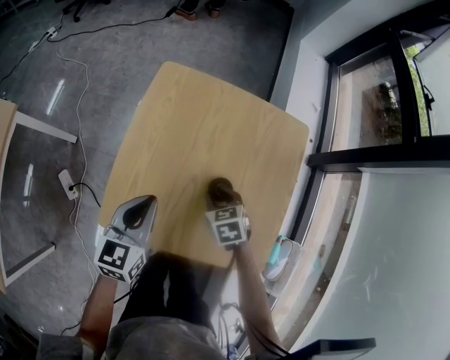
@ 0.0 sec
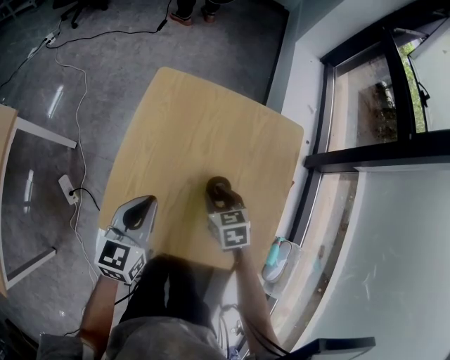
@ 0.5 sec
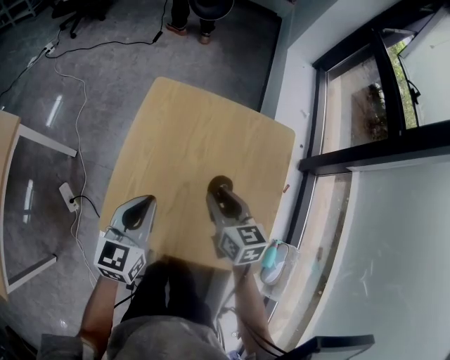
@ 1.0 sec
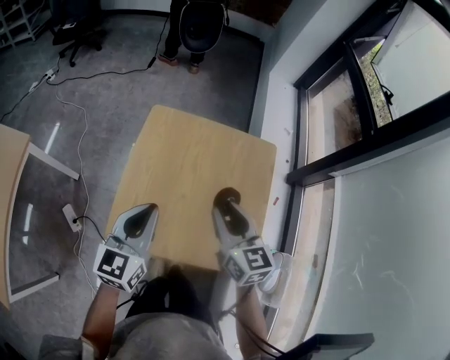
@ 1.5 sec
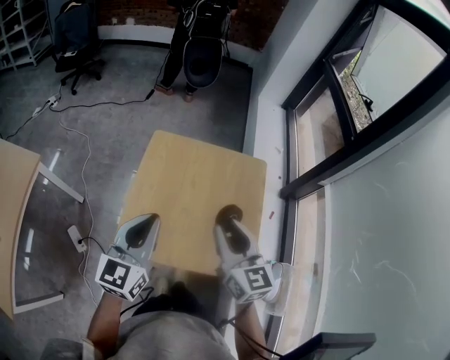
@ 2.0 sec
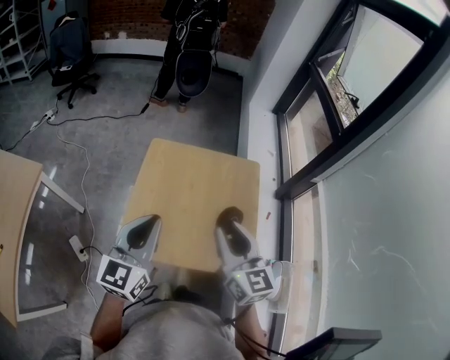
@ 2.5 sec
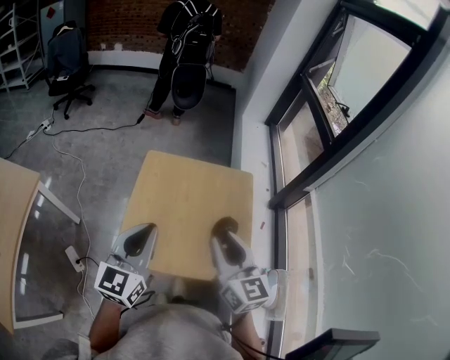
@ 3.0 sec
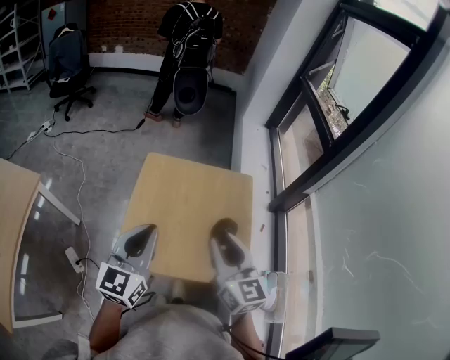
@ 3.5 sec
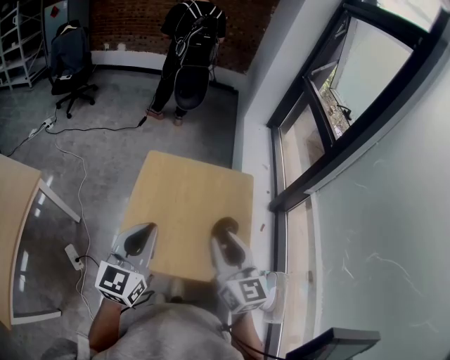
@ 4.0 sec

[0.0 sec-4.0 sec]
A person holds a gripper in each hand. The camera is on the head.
0.0 sec to 2.0 sec: The right gripper travels upward by about 35 cm, and tips its fingers upward by some 50 degrees, while the left gripper heads upward, covering about 25 cm, and turns by some 20 degrees.
2.0 sec to 4.0 sec: The right gripper moves some 5 cm.

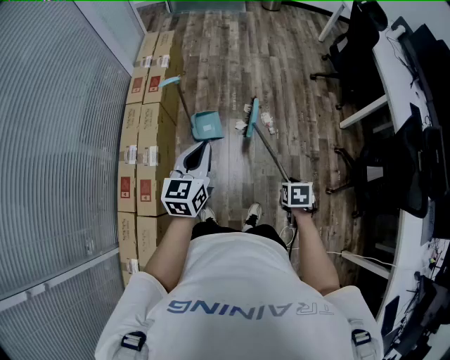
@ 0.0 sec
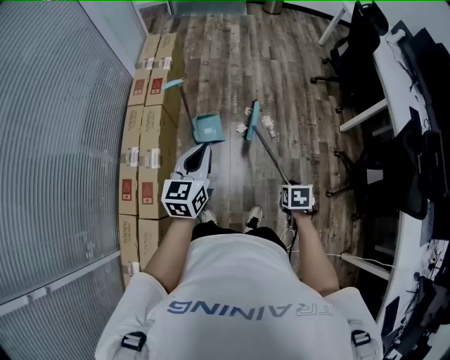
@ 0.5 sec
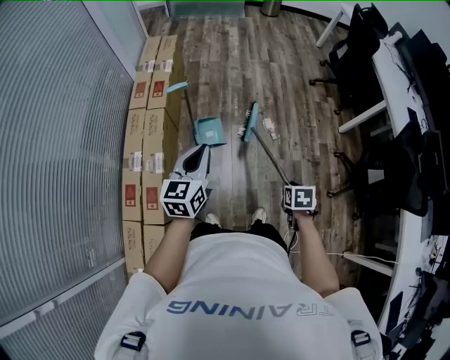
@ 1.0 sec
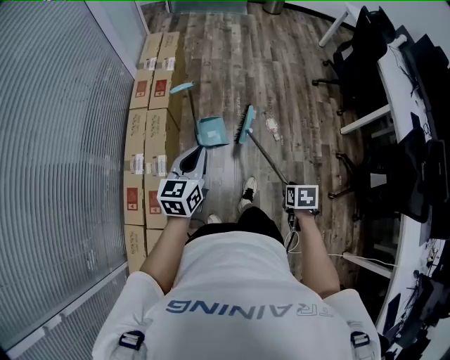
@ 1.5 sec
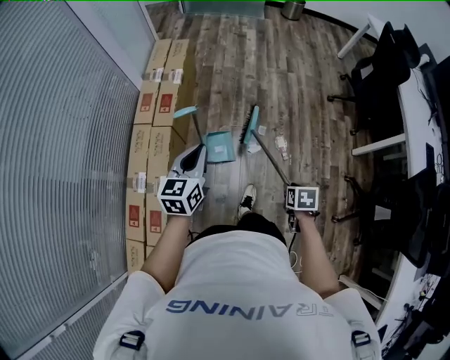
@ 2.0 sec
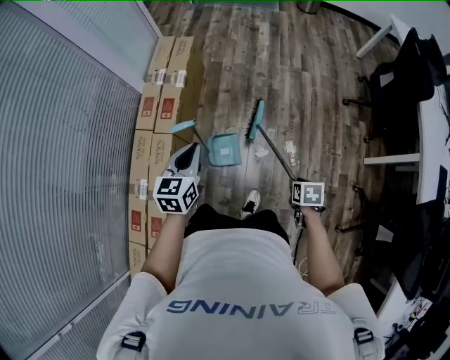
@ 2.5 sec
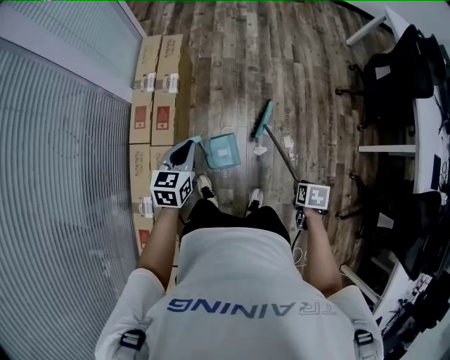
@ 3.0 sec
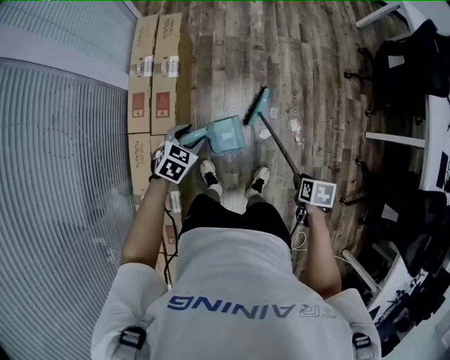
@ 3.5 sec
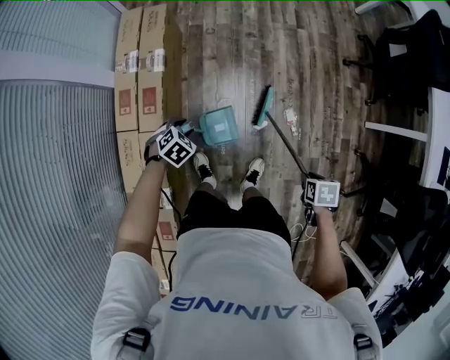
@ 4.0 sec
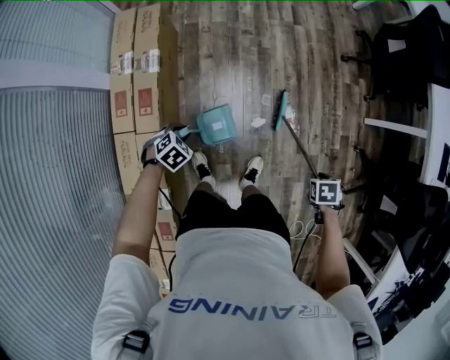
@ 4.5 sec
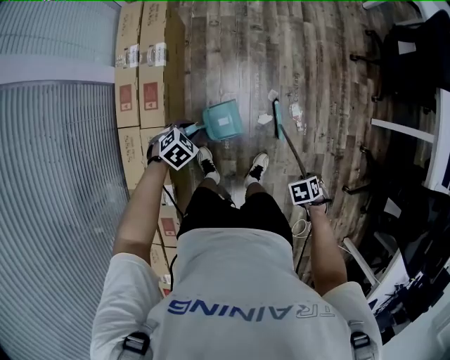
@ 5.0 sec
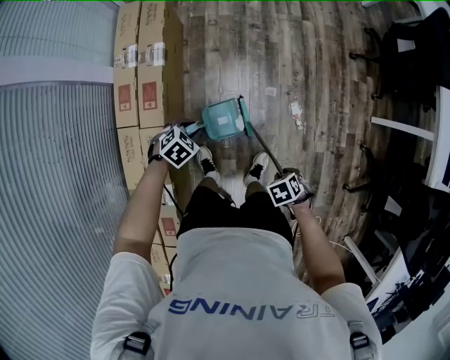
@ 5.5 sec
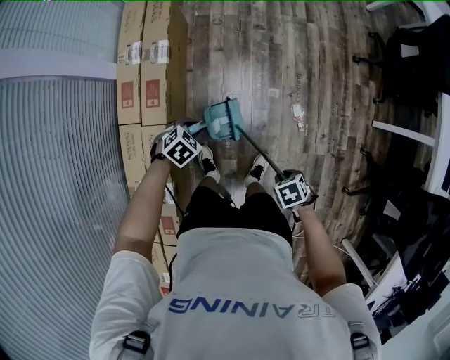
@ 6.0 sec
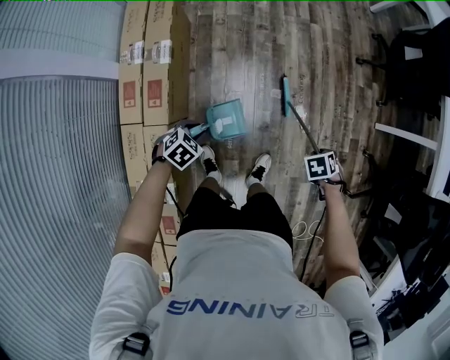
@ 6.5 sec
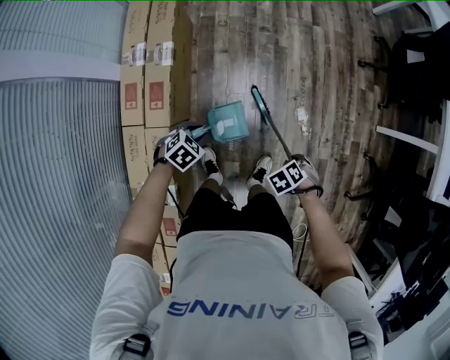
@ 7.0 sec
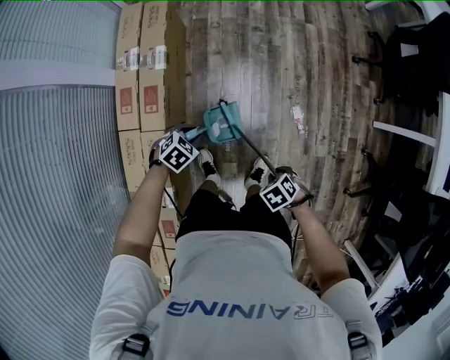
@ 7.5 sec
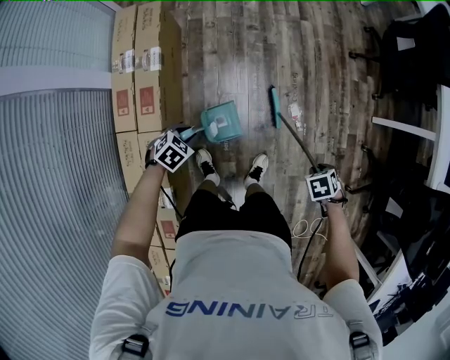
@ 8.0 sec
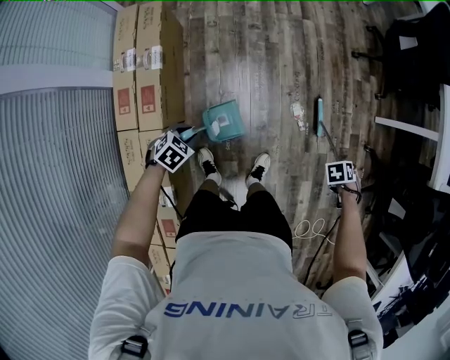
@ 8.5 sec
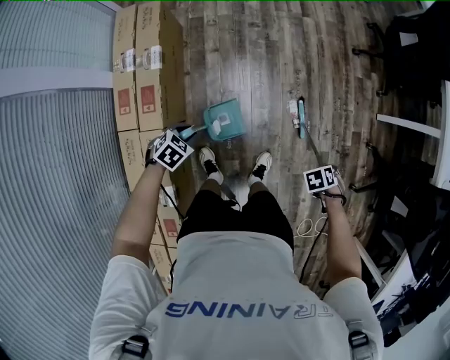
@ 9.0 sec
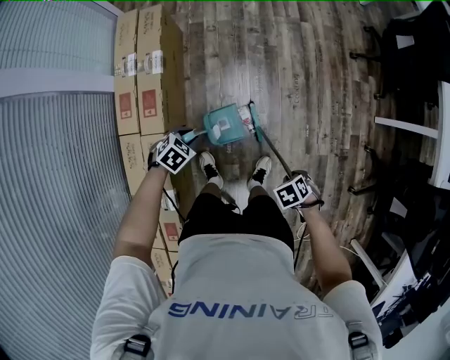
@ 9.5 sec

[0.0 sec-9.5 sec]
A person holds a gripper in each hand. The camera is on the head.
0.0 sec to 2.0 sec: The left gripper shifts by roughly 20 cm.
2.0 sec to 4.0 sec: The left gripper goes some 30 cm downward, points its fingers roughly 50 degrees further downward, and opens.

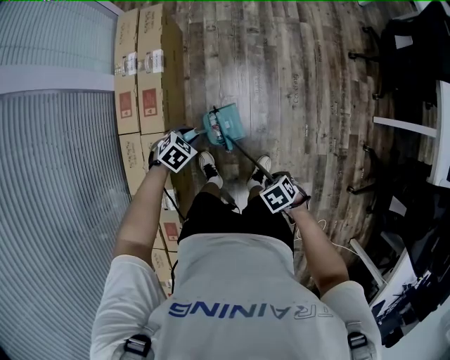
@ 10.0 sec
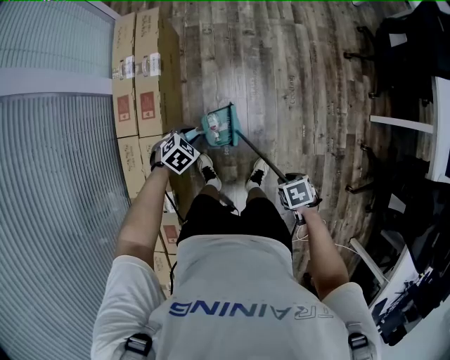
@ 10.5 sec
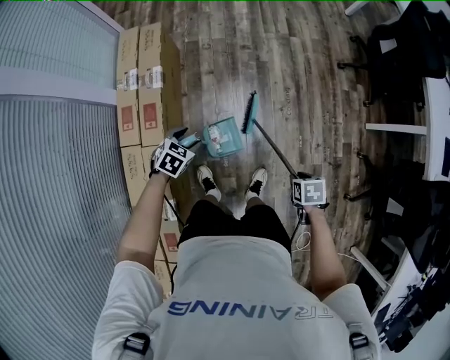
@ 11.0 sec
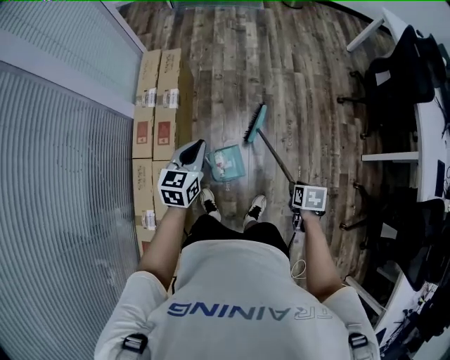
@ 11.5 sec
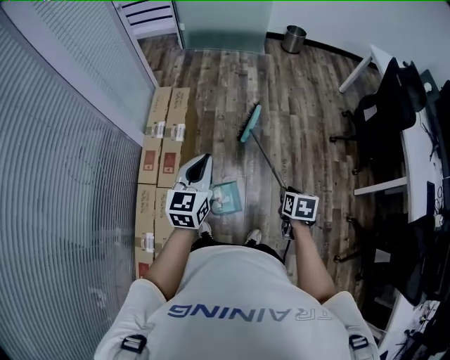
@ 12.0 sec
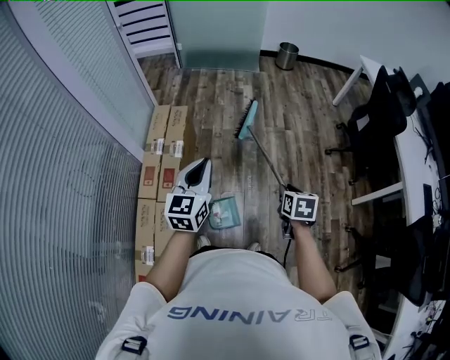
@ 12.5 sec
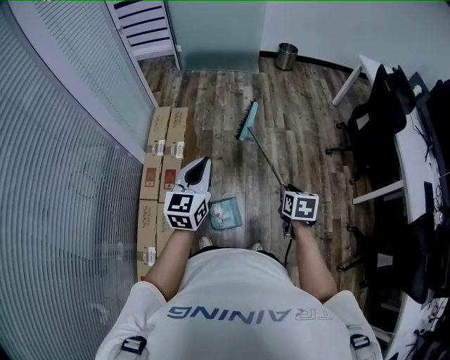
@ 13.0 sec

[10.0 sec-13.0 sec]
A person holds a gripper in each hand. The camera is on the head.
10.0 sec to 11.5 sec: The left gripper goes approximately 25 cm upward, tips its fingers upward by about 40 degrees, and closes its fingers.
11.5 sec to 13.0 sec: The left gripper moves upward, about 15 cm.

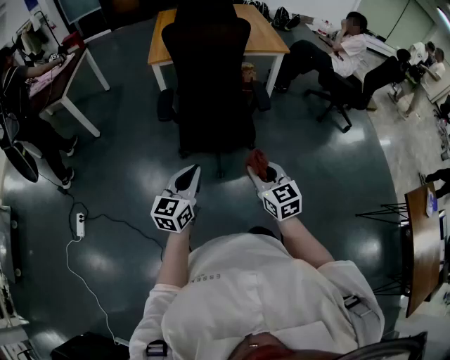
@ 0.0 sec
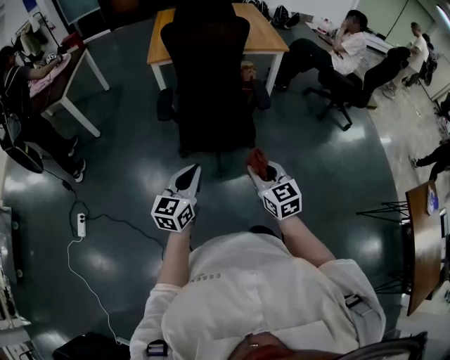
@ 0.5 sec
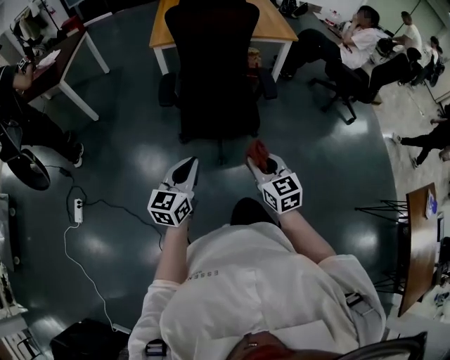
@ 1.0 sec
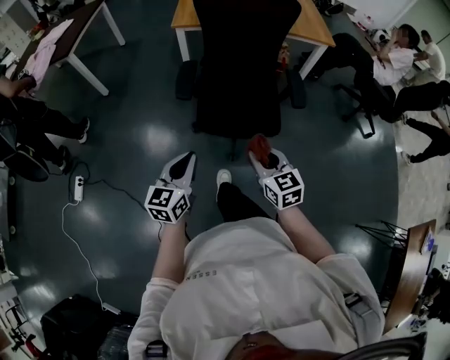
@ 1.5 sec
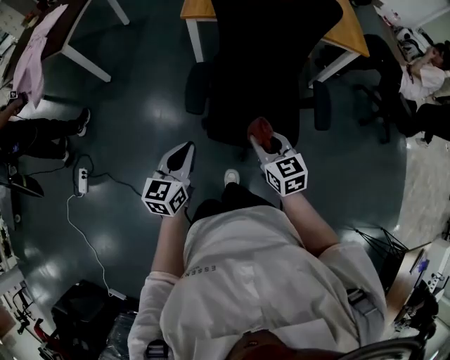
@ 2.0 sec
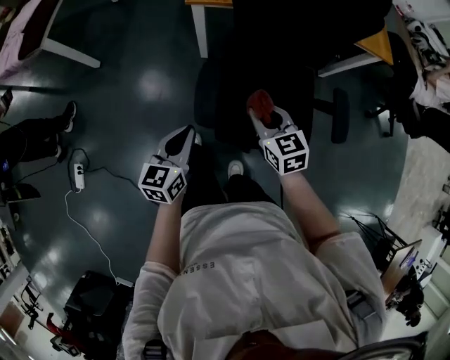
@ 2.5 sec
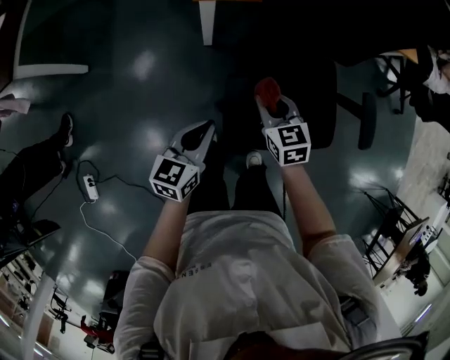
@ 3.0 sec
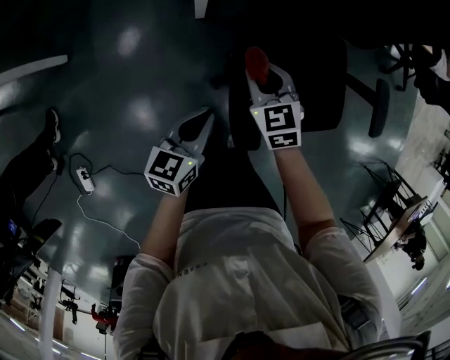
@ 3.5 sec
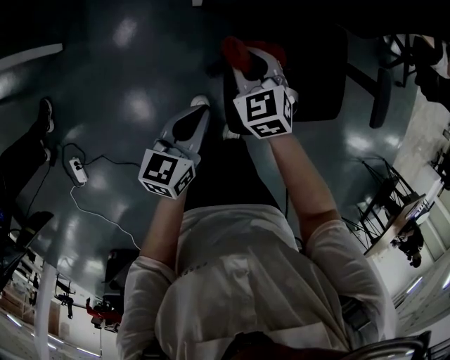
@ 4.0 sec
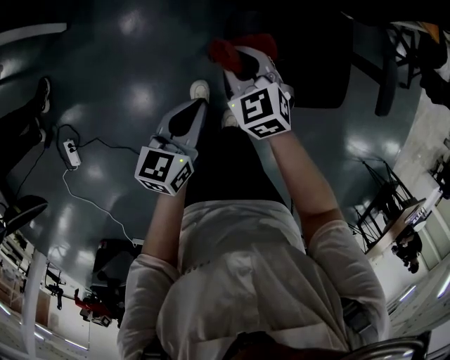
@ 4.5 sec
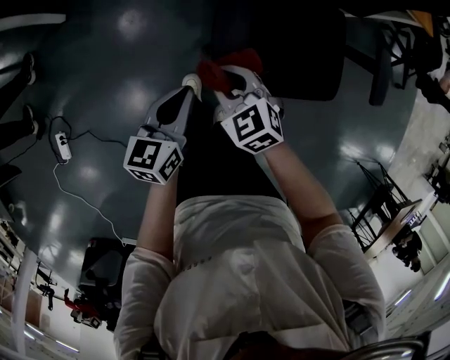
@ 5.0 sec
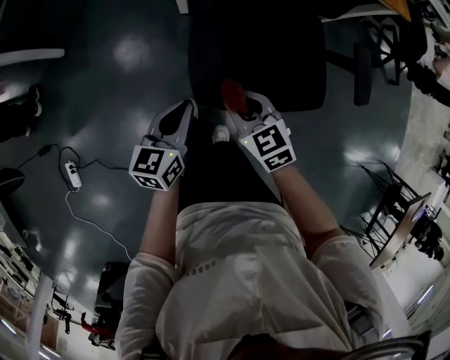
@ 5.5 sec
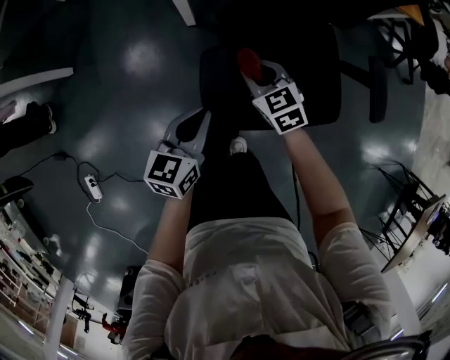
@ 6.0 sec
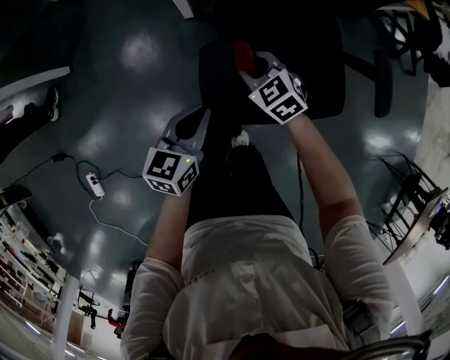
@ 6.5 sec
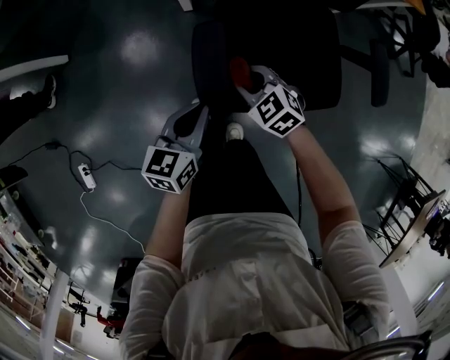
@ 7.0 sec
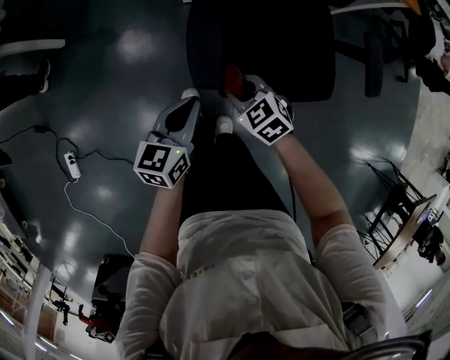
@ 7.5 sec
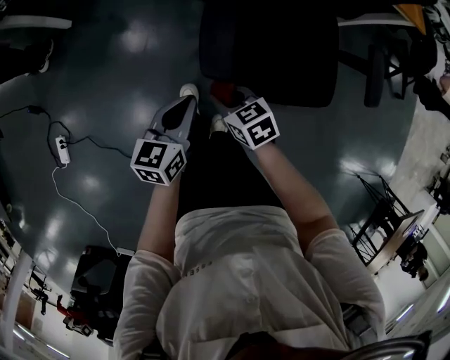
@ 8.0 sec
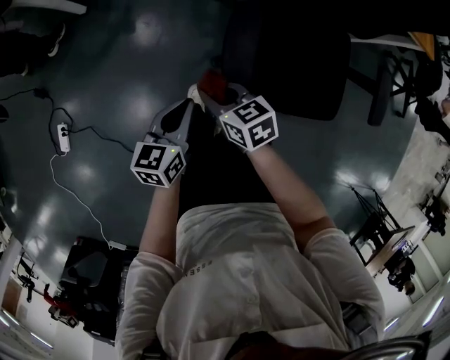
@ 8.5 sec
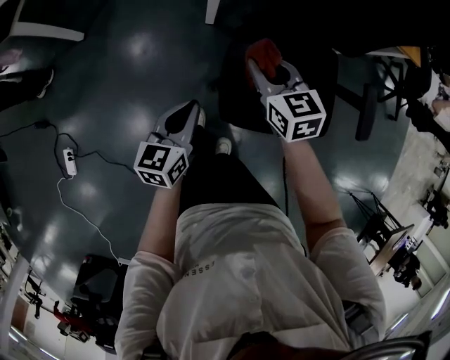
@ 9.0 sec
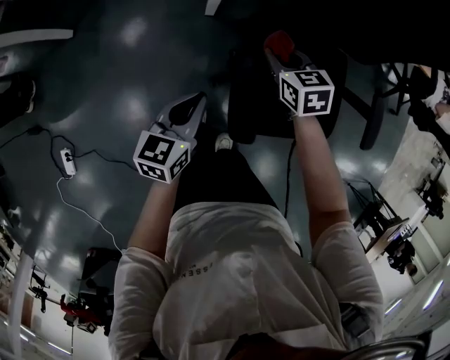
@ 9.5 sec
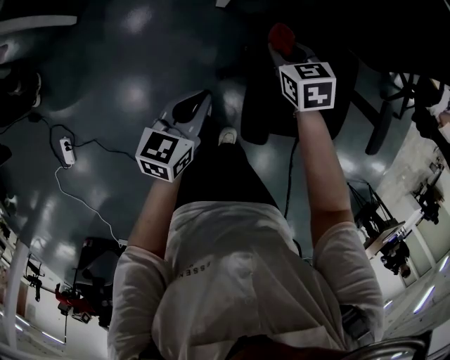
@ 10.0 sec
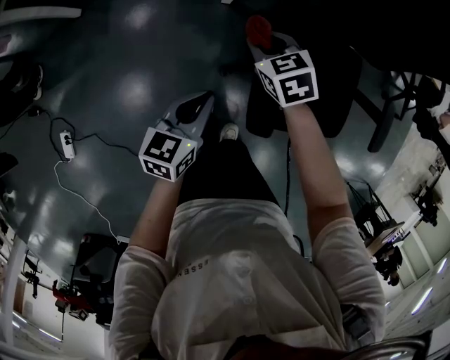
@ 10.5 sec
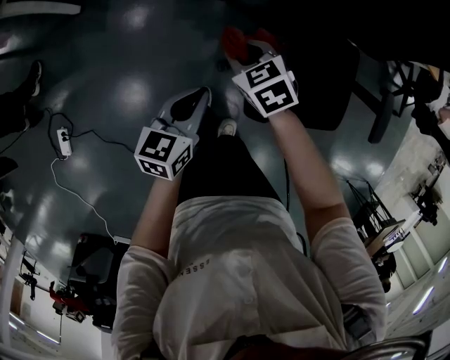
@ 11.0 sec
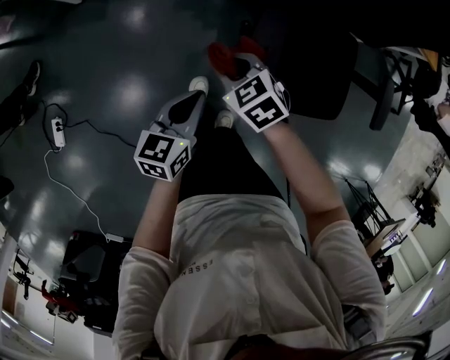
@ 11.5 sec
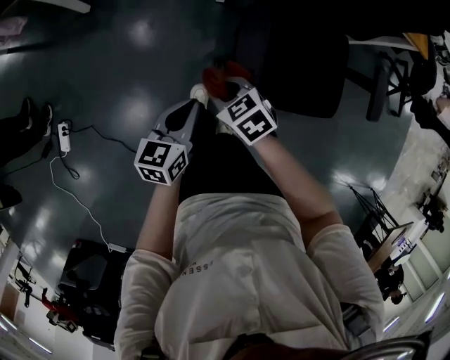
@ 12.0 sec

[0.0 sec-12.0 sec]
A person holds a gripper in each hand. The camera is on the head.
0.0 sec to 2.0 sec: The left gripper shifts approximately 30 cm forward and to the left, while the right gripper is displaced forward by roughly 30 cm.
2.0 sec to 4.0 sec: The right gripper is displaced forward, to the left and downward by some 40 cm, and changes its angle by roughly 30 degrees; the left gripper travels forward, downward and to the left by approximately 30 cm, and swivels approximately 20 degrees.
4.0 sec to 6.0 sec: Both grippers travel together to the right, some 5 cm. The left gripper moves approximately 10 cm backward and comes back, while the right gripper moves some 20 cm backward and comes back.
6.0 sec to 8.0 sec: The left gripper travels backward by roughly 15 cm. Meanwhile the right gripper shifts approximately 25 cm backward and to the left, and rotates some 20 degrees.
8.0 sec to 10.0 sec: The right gripper heads forward, covering some 30 cm, while the left gripper is displaced forward by some 15 cm.
10.0 sec to 12.0 sec: The right gripper moves backward and to the left, about 30 cm, and swivels some 20 degrees; the left gripper travels backward by about 20 cm.
